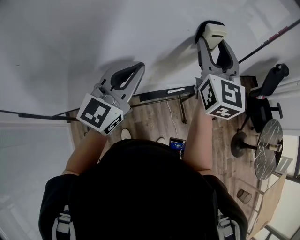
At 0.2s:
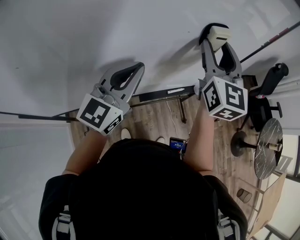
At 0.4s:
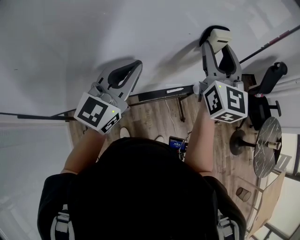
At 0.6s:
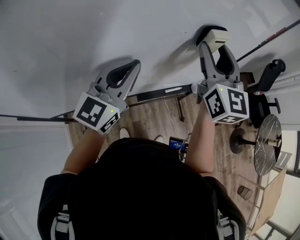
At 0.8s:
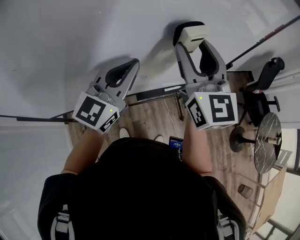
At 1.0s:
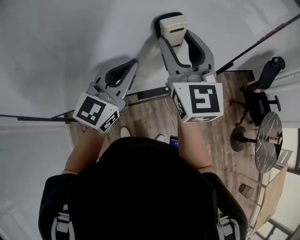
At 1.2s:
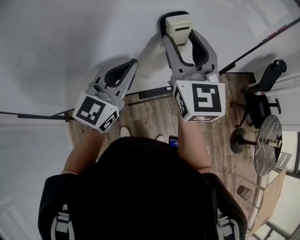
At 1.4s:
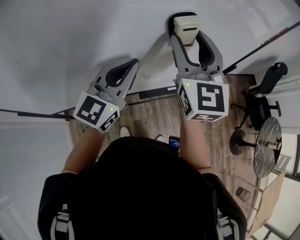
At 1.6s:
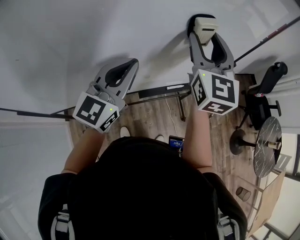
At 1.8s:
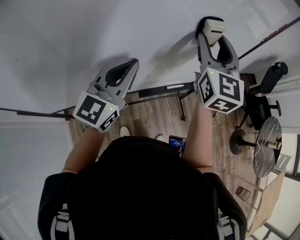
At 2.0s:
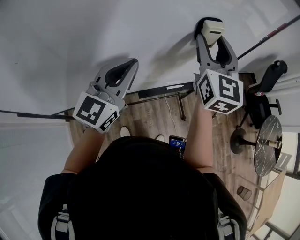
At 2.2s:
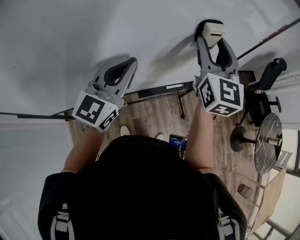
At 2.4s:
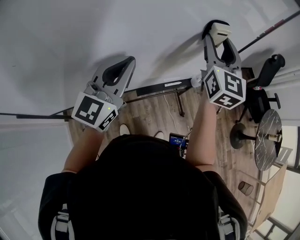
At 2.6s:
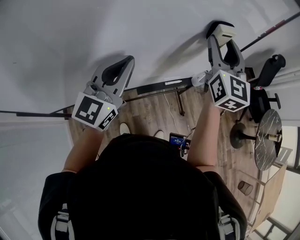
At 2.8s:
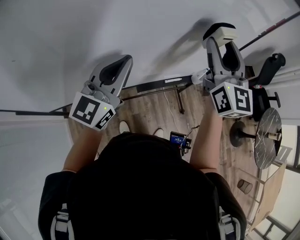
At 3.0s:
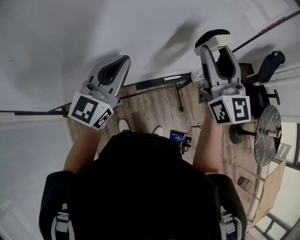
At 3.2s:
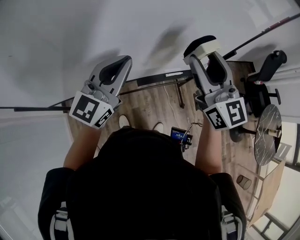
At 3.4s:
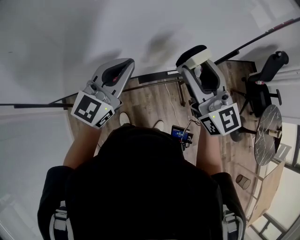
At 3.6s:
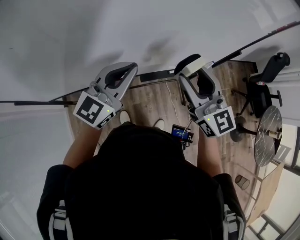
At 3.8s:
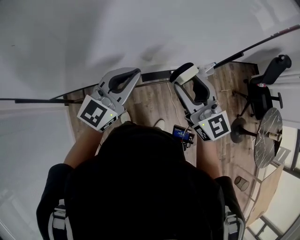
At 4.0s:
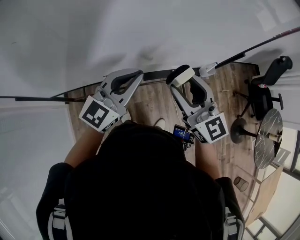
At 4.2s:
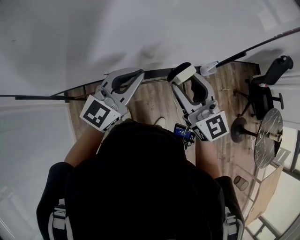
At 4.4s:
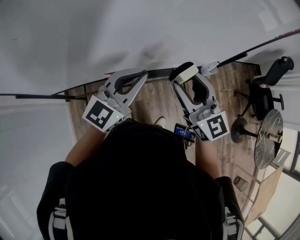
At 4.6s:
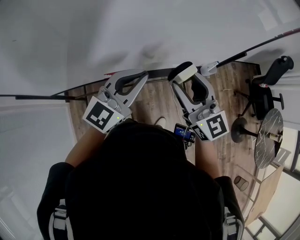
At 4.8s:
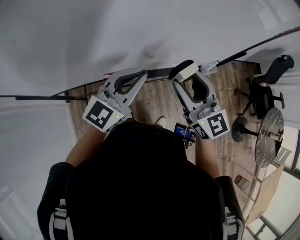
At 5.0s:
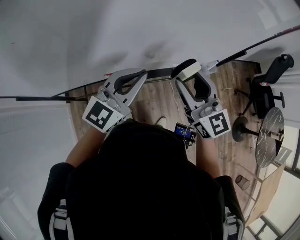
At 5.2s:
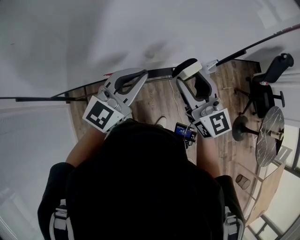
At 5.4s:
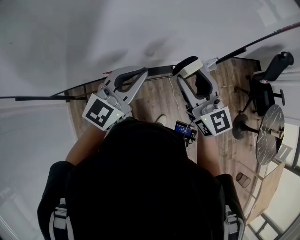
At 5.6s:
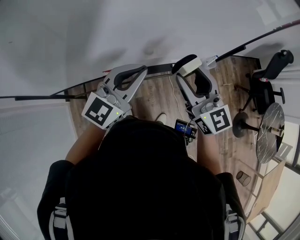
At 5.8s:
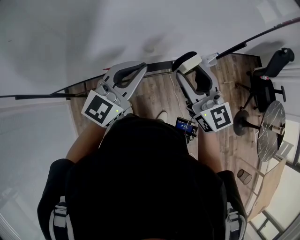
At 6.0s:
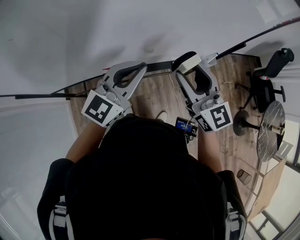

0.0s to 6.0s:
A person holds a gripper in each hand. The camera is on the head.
0.0s to 1.6s: The right gripper moves about 10 cm to the left and comes back.
1.6s to 3.0s: The right gripper travels backward by approximately 5 cm.
3.0s to 4.4s: The left gripper goes about 10 cm downward and backward, while the right gripper shifts approximately 20 cm downward, backward and to the left, and swivels roughly 20 degrees.
4.4s to 6.0s: The grippers stay close to where they were, moving slightly.

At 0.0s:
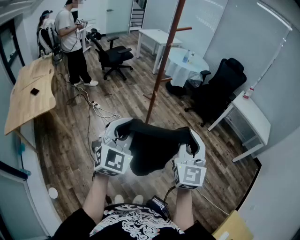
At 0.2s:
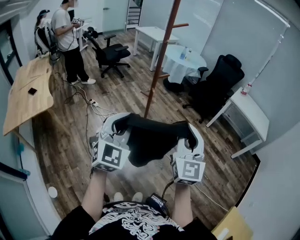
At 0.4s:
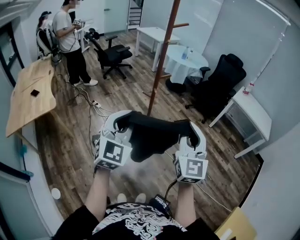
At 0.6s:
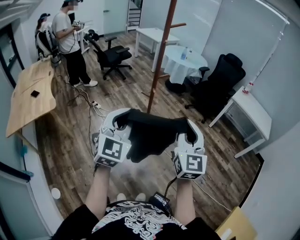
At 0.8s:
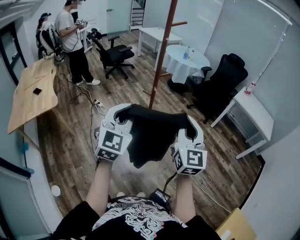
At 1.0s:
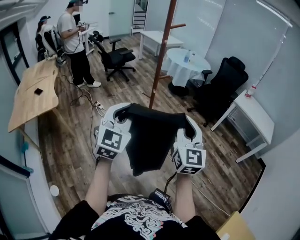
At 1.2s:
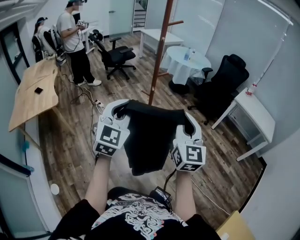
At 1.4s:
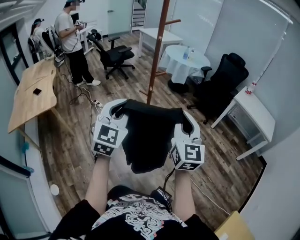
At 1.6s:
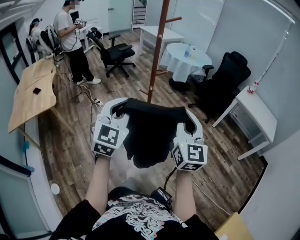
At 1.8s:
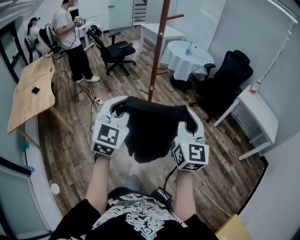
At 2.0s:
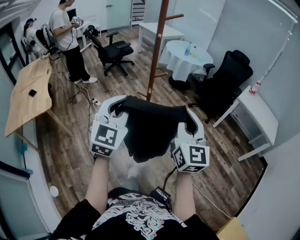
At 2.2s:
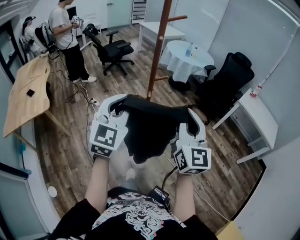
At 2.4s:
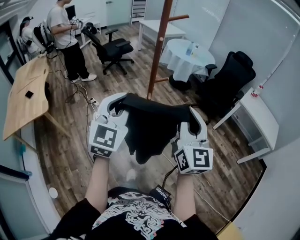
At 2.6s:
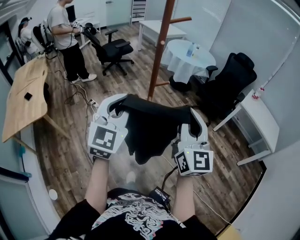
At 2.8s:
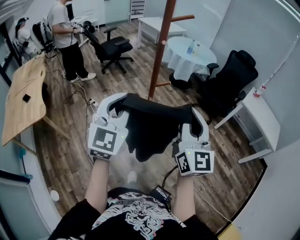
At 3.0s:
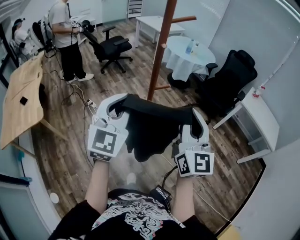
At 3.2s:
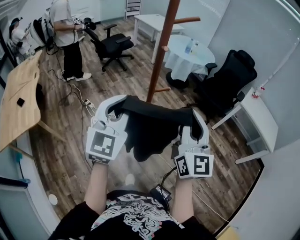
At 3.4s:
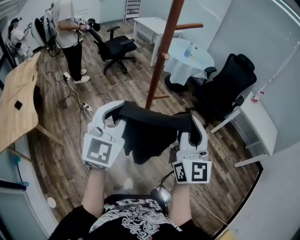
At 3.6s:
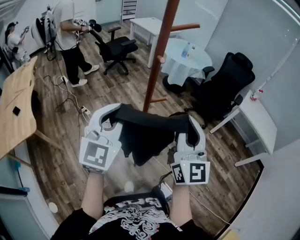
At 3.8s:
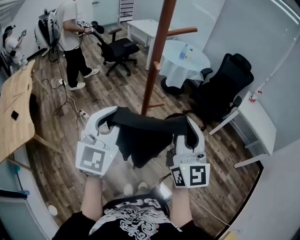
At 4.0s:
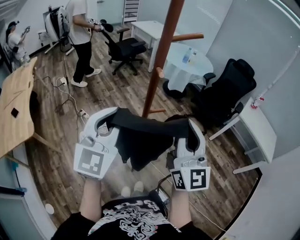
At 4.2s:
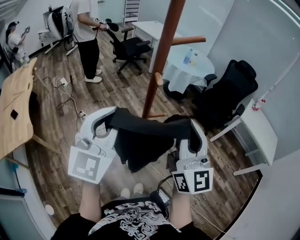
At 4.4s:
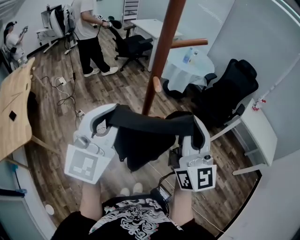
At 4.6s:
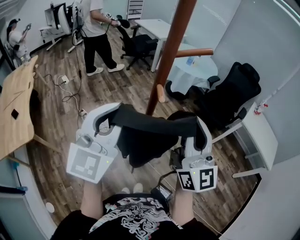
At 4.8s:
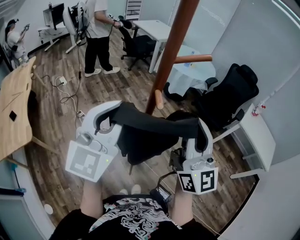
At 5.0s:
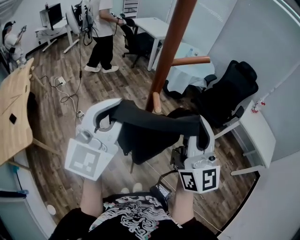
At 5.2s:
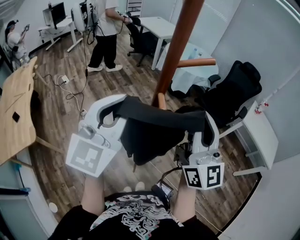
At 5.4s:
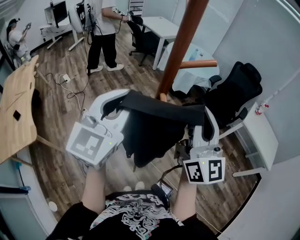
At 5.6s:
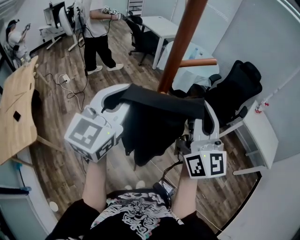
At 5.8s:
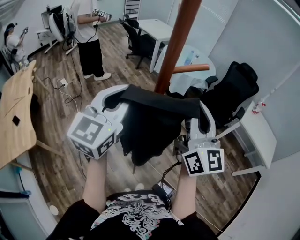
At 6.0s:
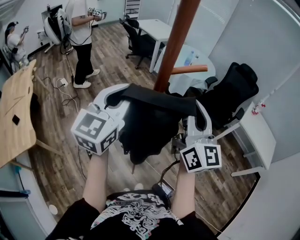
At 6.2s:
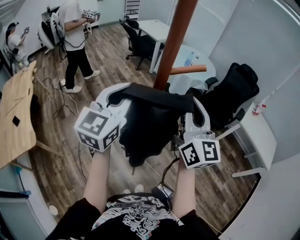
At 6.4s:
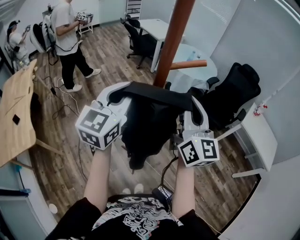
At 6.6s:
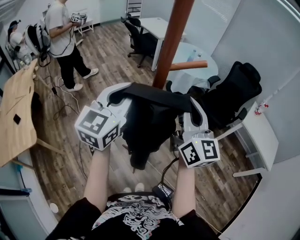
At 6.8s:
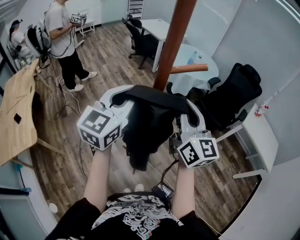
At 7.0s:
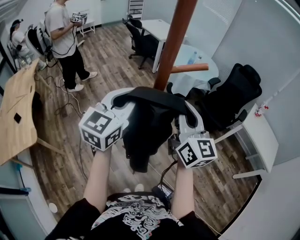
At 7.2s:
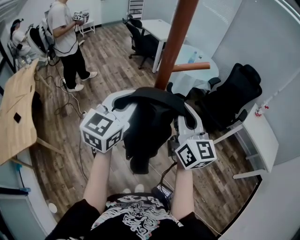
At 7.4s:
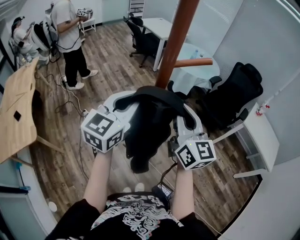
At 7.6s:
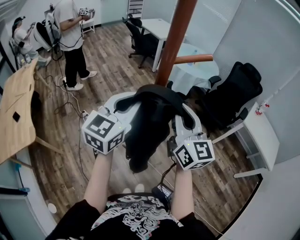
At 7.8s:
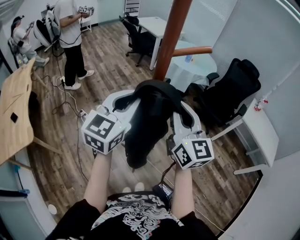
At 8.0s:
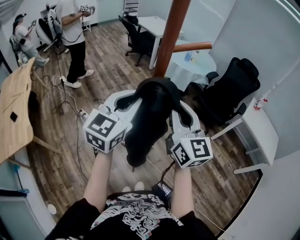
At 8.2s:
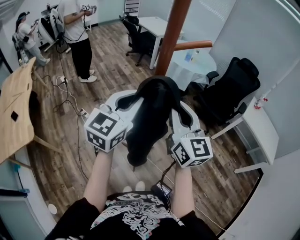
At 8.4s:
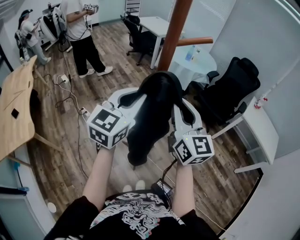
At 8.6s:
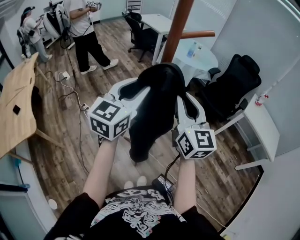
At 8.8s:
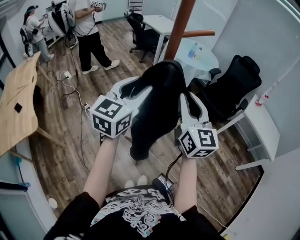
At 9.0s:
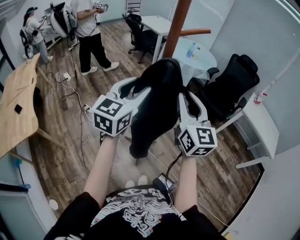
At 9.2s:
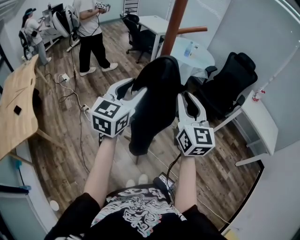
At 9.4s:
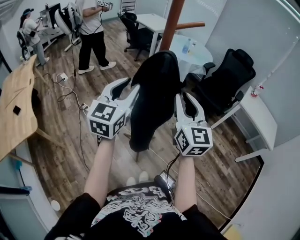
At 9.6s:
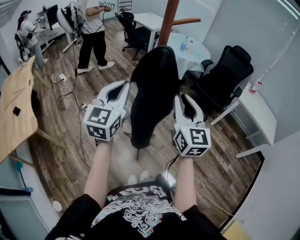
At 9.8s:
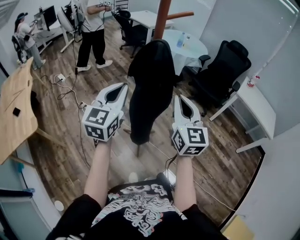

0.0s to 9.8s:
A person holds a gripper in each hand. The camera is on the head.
0.0s to 1.4s: The right gripper is displaced forward by approximately 5 cm. The left gripper ends up roughly 5 cm from where it was.
1.4s to 2.8s: The grippers both shift forward by roughly 20 cm.
2.8s to 4.2s: The grippers both shift forward by roughly 15 cm.
4.2s to 5.6s: The two grippers go approximately 15 cm forward and upward.
5.6s to 7.0s: The left gripper ends up roughly 5 cm from where it was; the right gripper travels downward and forward by roughly 10 cm.
7.0s to 8.4s: The right gripper shifts roughly 10 cm backward and downward; the left gripper is displaced downward and backward by some 10 cm.
8.4s to 9.8s: Both grippers move backward, roughly 10 cm. The left gripper opens and closes again.

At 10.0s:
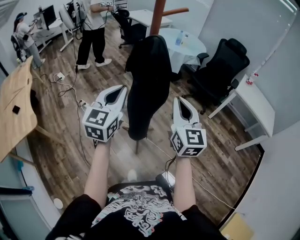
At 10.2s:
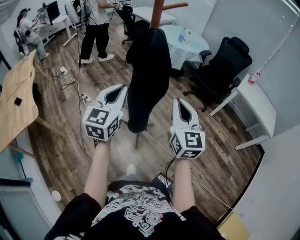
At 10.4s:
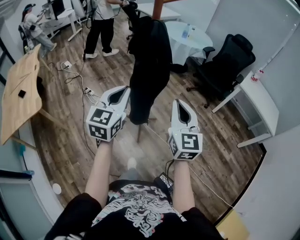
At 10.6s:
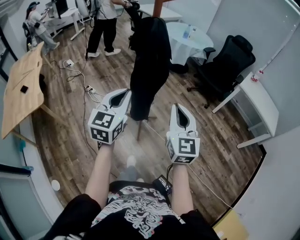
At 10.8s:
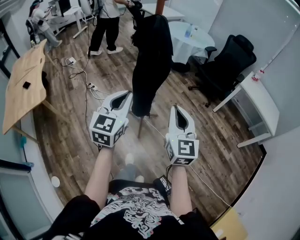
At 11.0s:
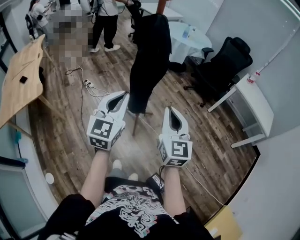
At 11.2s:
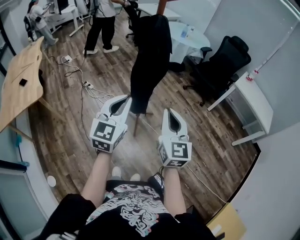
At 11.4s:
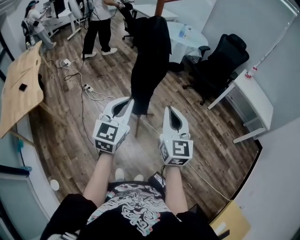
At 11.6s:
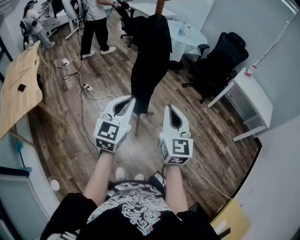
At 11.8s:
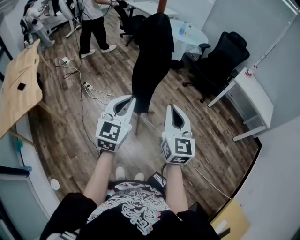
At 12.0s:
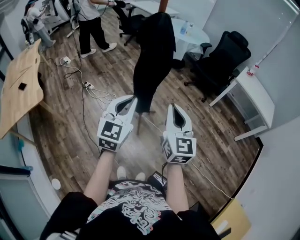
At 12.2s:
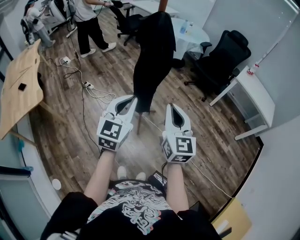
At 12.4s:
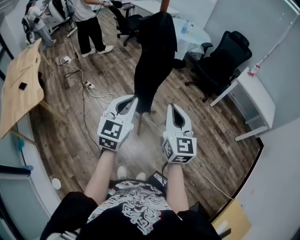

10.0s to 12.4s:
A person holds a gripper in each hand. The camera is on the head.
10.0s to 11.2s: The two grippers go approximately 20 cm backward.
11.2s to 12.4s: The grippers stay close to where they were, moving slightly.

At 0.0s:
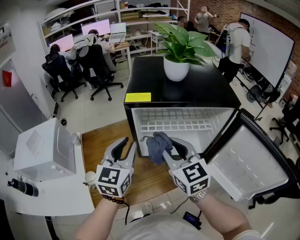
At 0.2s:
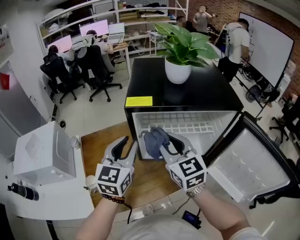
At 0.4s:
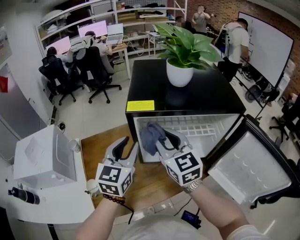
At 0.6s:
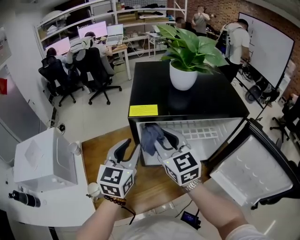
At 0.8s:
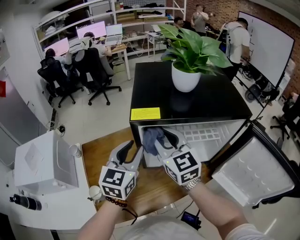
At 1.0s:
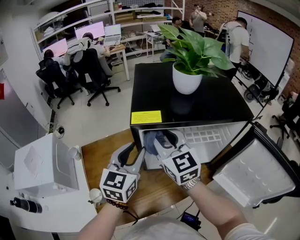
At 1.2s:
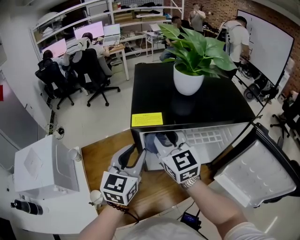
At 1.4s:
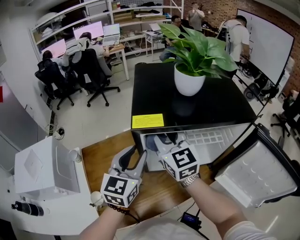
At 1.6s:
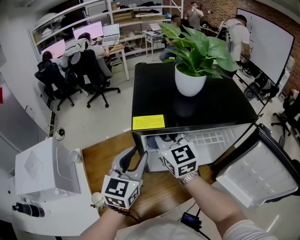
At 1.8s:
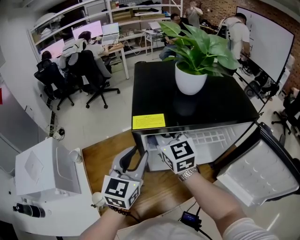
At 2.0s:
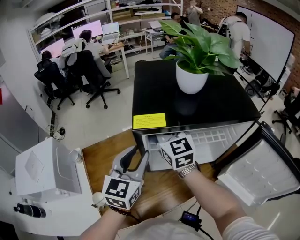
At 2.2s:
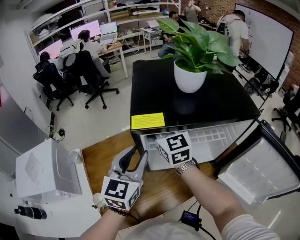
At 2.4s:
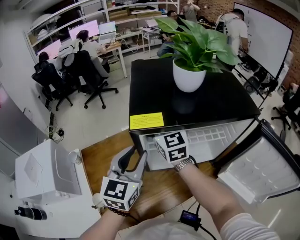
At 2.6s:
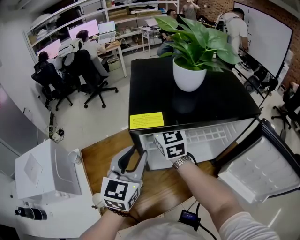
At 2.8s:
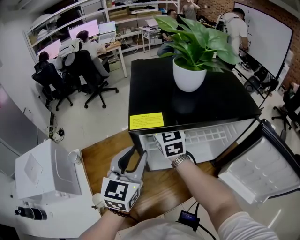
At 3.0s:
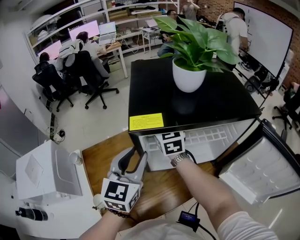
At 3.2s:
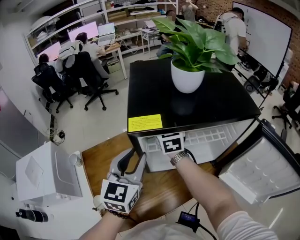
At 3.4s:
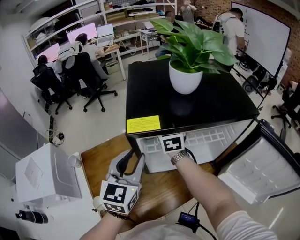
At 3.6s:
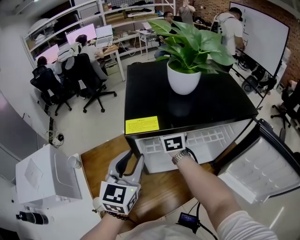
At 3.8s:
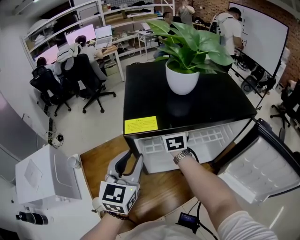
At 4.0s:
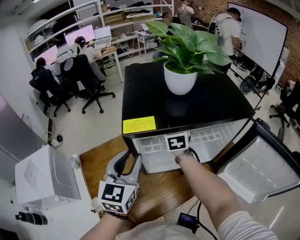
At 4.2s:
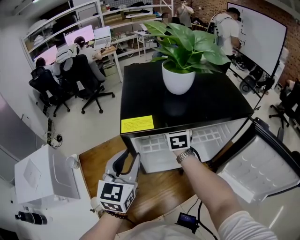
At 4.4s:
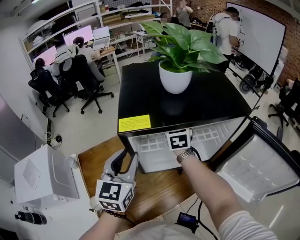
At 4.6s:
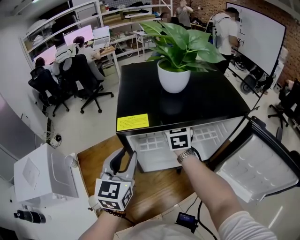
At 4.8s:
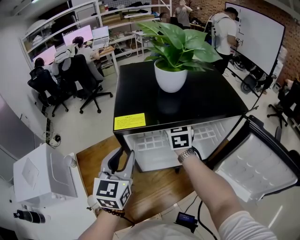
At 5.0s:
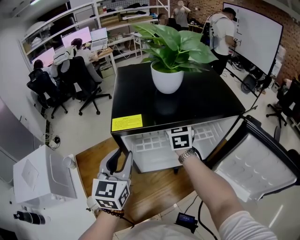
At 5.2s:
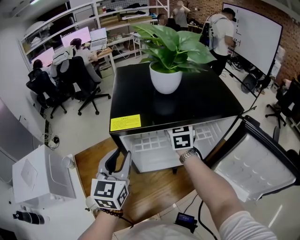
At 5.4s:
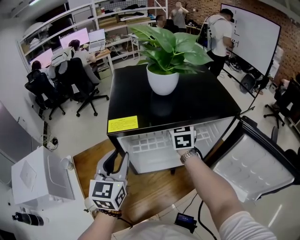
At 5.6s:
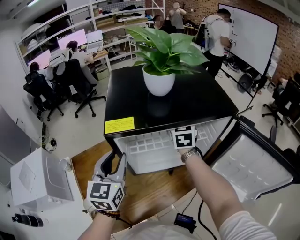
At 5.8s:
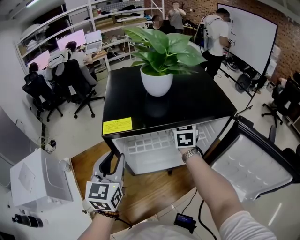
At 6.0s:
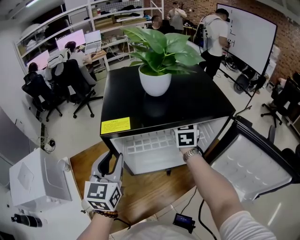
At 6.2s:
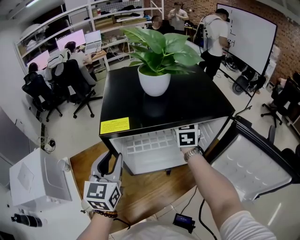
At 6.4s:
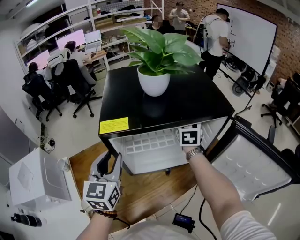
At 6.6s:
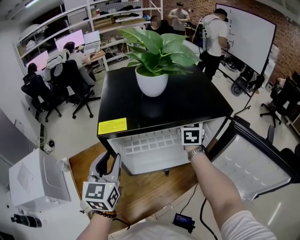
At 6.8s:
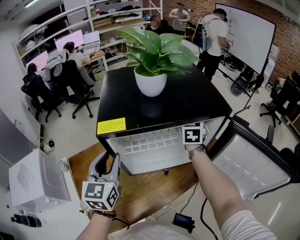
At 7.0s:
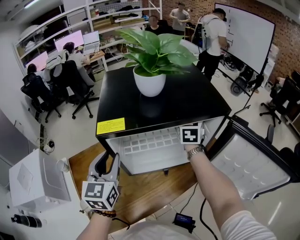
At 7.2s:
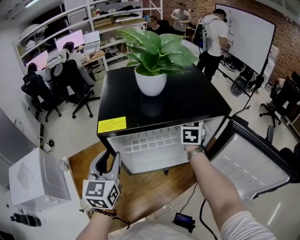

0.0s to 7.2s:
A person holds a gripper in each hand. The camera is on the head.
0.0s to 1.4s: The left gripper moves forward, approximately 5 cm, while the right gripper is displaced forward by about 15 cm.
1.4s to 2.8s: The right gripper shifts some 10 cm forward.
2.8s to 4.4s: The right gripper moves to the right, about 10 cm.
4.4s to 5.8s: The right gripper shifts approximately 10 cm to the right.
5.8s to 7.2s: The right gripper moves to the right, some 5 cm.
